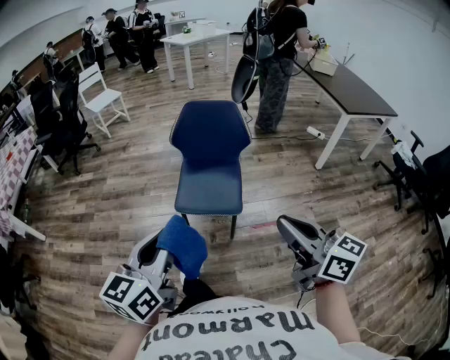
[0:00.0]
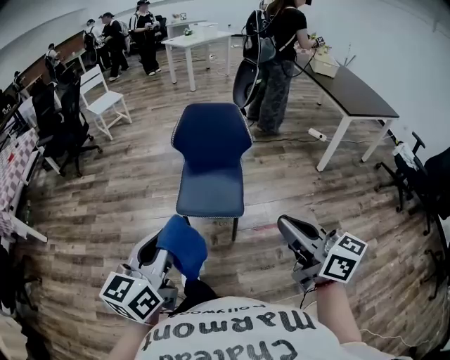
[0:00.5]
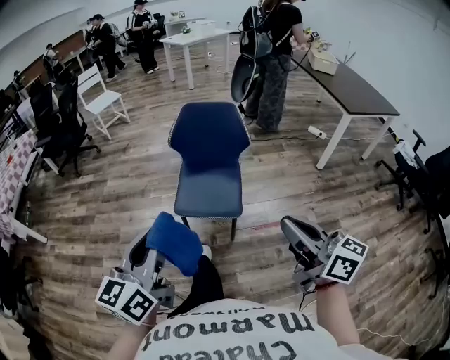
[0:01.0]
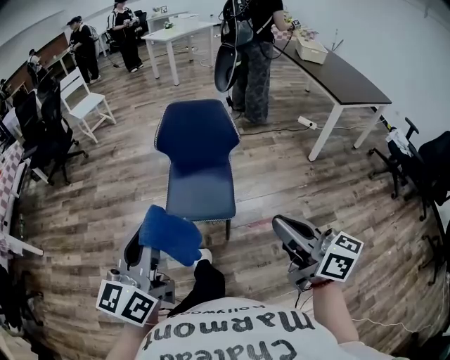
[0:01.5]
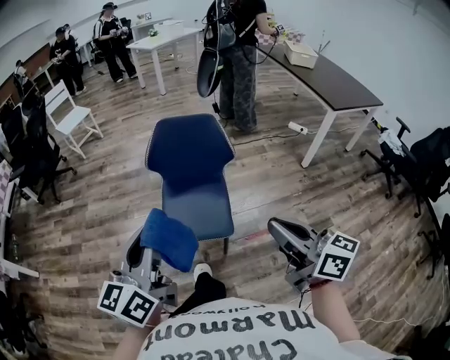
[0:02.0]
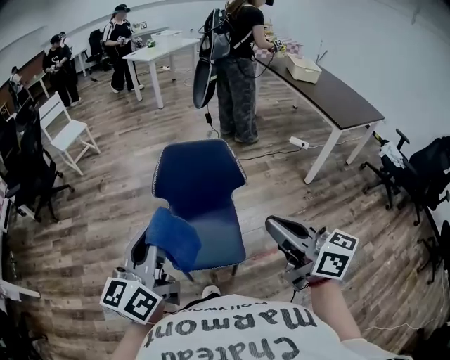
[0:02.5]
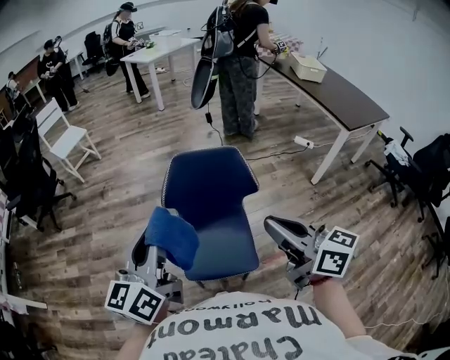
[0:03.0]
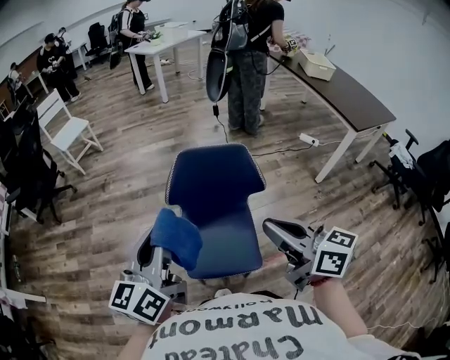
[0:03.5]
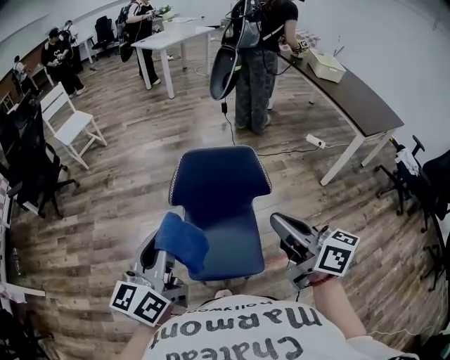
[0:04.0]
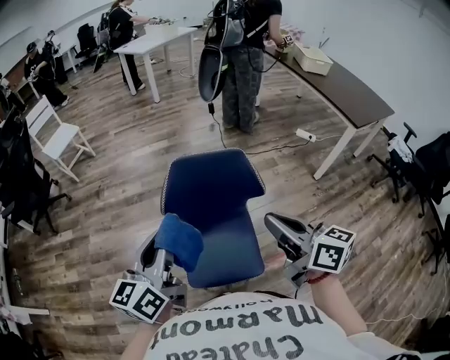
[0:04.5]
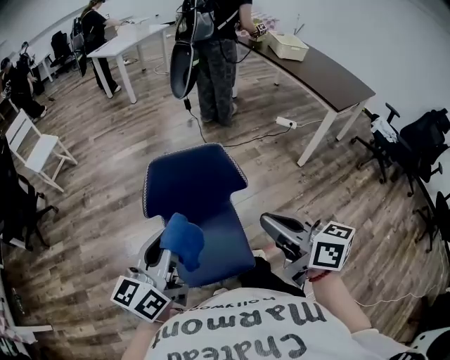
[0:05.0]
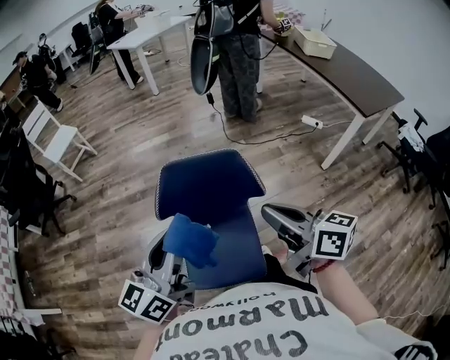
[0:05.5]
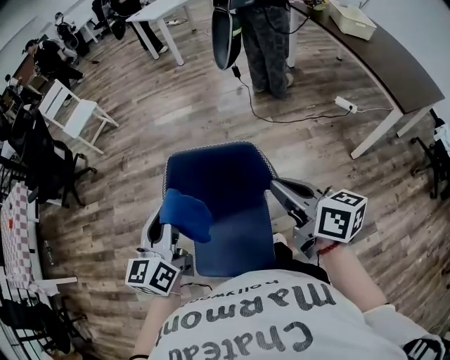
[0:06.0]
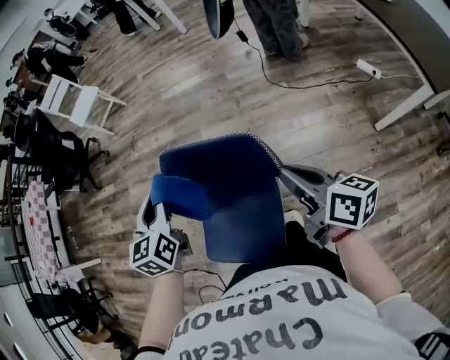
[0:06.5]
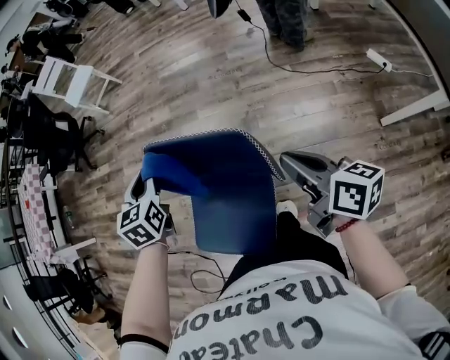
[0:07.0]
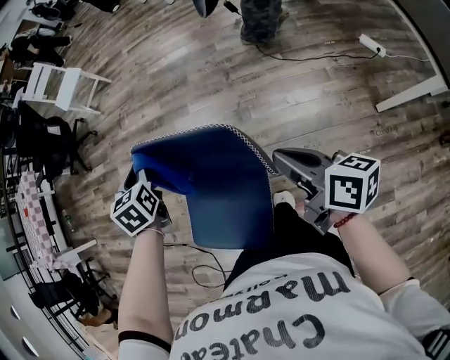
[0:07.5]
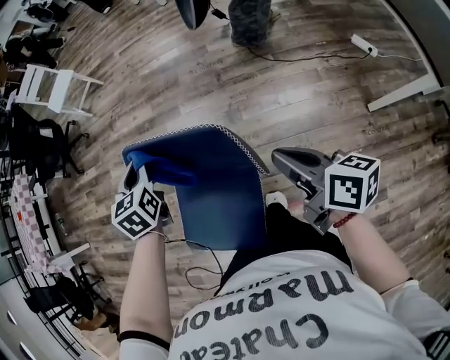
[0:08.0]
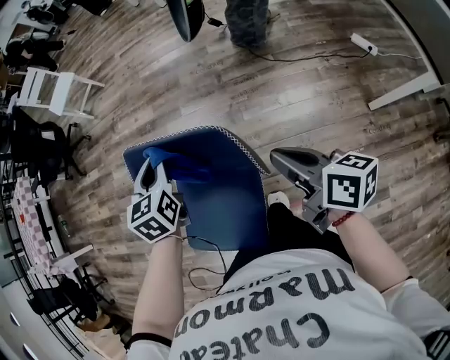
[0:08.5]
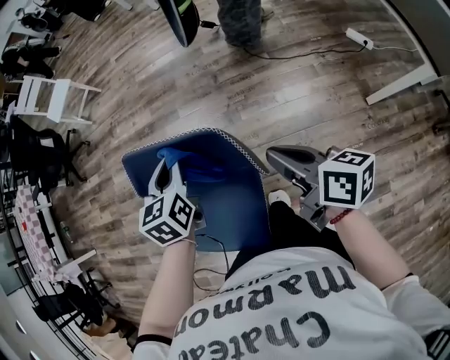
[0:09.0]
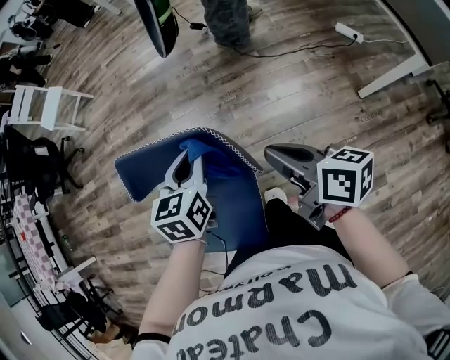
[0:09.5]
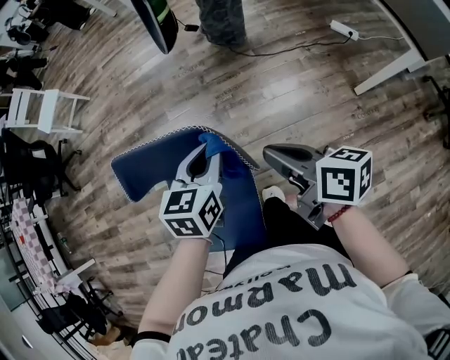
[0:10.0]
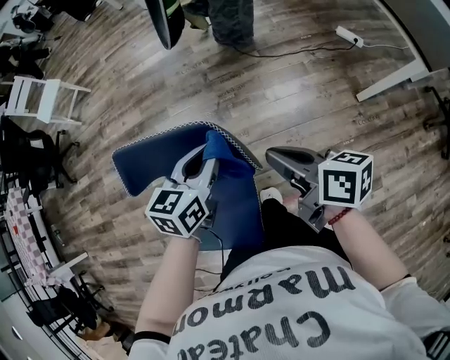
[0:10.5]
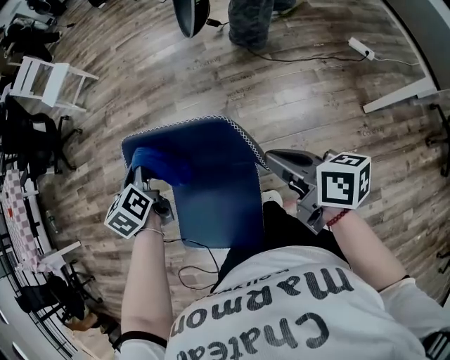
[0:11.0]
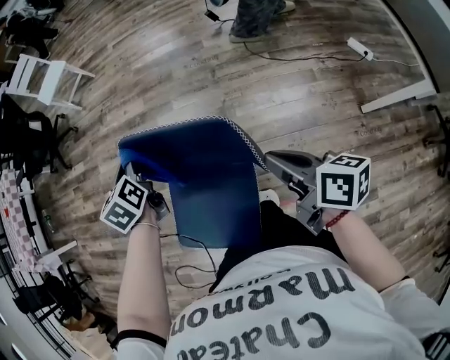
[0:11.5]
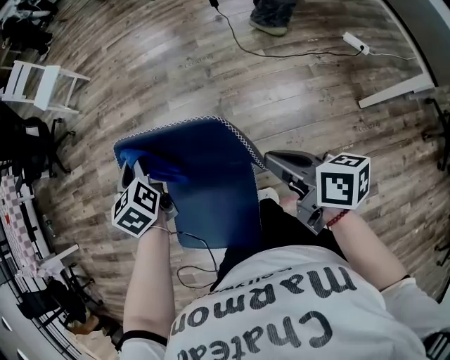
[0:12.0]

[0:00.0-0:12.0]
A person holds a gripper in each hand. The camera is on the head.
0:00.0 to 0:02.0: The two grippers go roughly 15 cm forward.
0:02.0 to 0:04.0: The two grippers go some 25 cm forward.
0:04.0 to 0:06.0: Both grippers move forward, to the right and downward, approximately 20 cm.
0:06.0 to 0:08.0: The right gripper travels downward and to the right by roughly 15 cm. The left gripper goes about 20 cm downward, forward and to the right, and swivels approximately 40 degrees.
0:08.0 to 0:10.0: The left gripper heads to the right and backward, covering about 25 cm, and changes its angle by some 40 degrees.
0:10.0 to 0:12.0: The left gripper ends up approximately 25 cm from where it was, and turns by roughly 40 degrees.

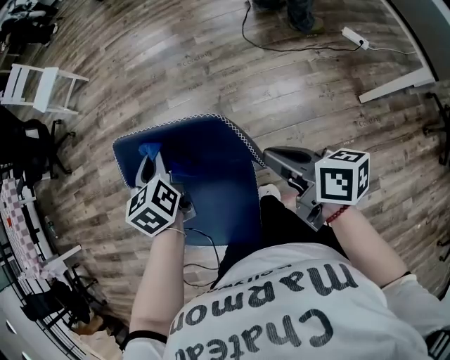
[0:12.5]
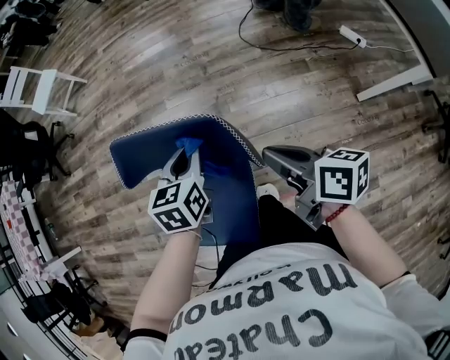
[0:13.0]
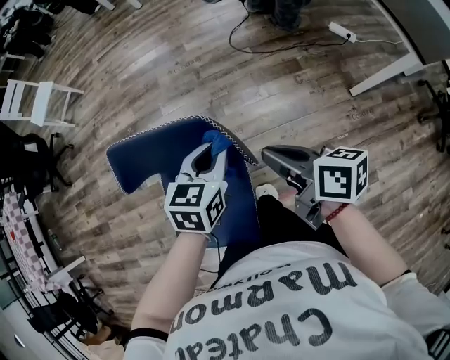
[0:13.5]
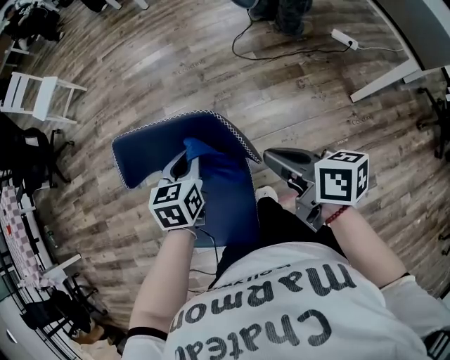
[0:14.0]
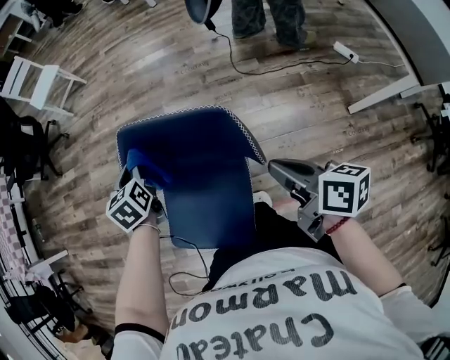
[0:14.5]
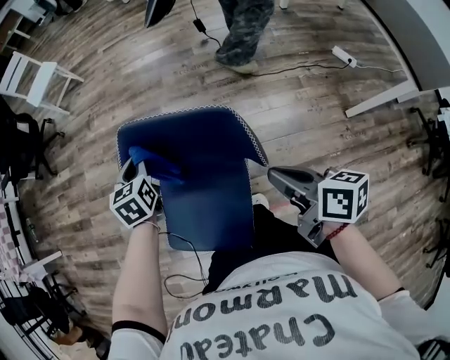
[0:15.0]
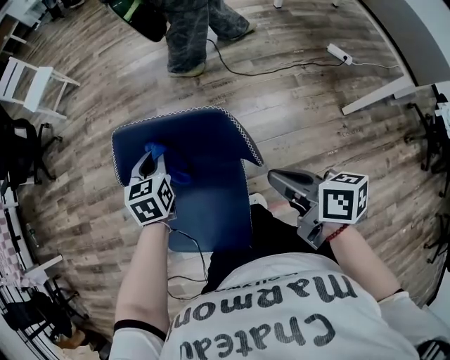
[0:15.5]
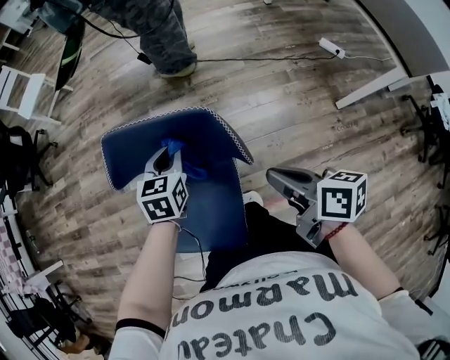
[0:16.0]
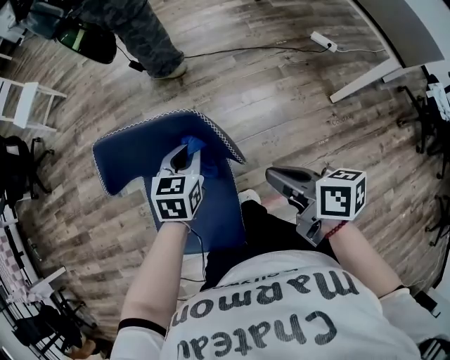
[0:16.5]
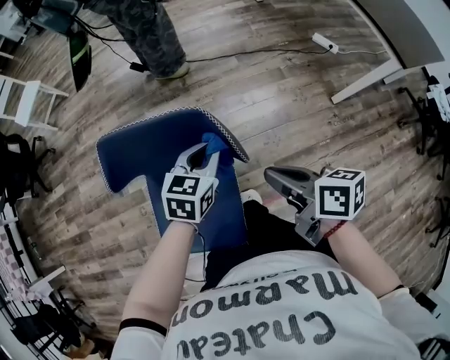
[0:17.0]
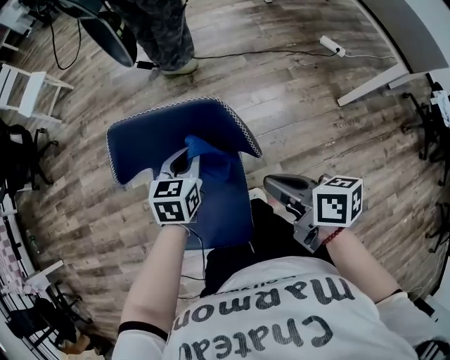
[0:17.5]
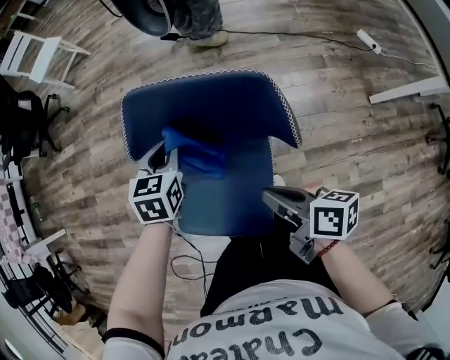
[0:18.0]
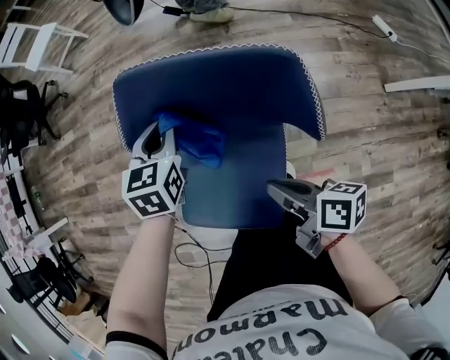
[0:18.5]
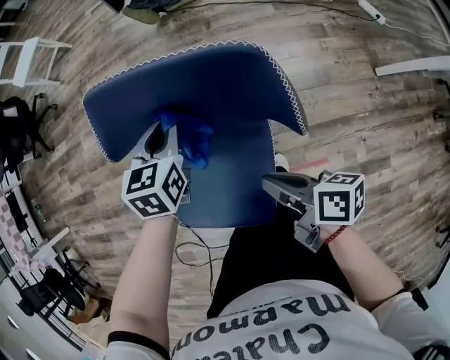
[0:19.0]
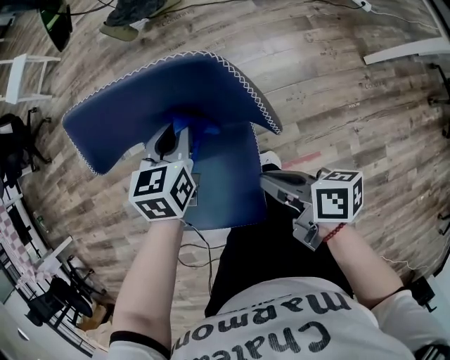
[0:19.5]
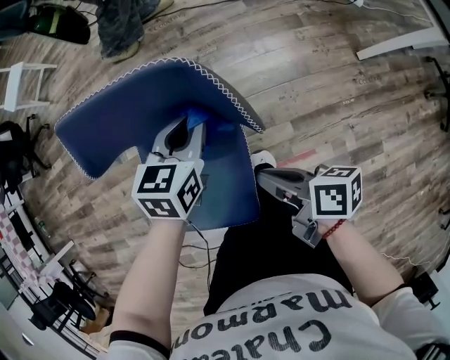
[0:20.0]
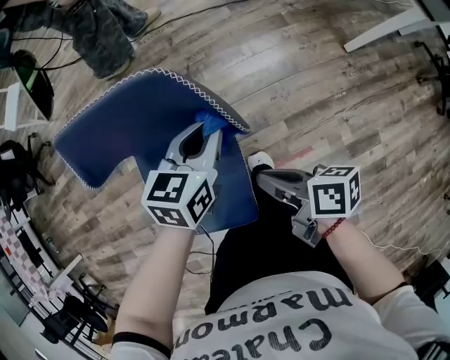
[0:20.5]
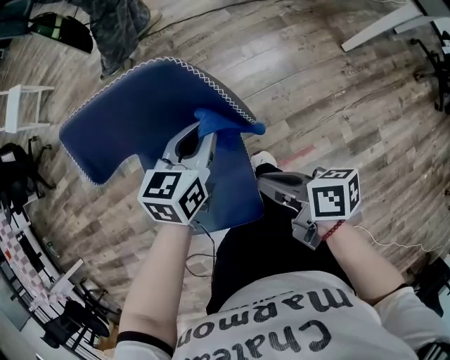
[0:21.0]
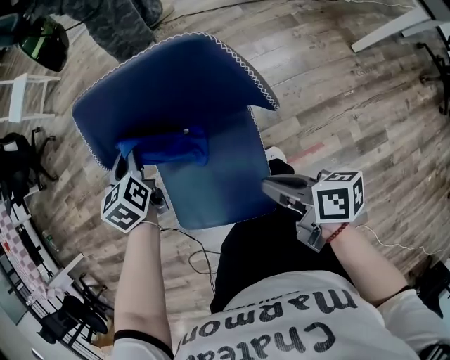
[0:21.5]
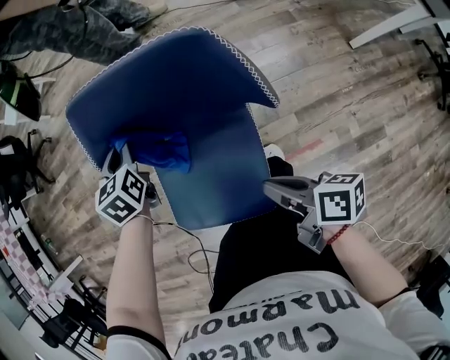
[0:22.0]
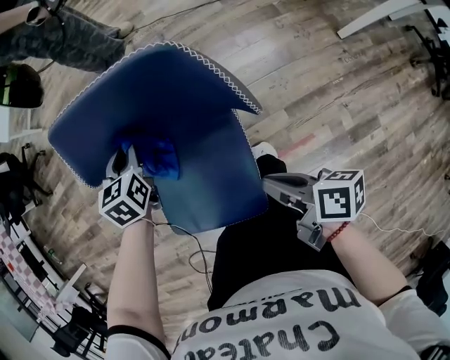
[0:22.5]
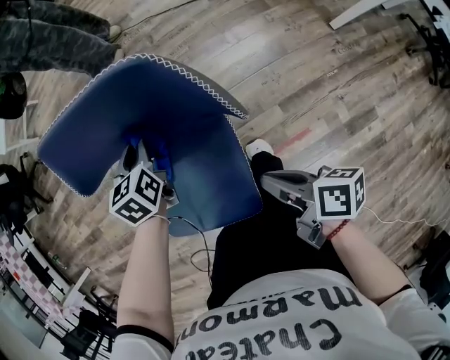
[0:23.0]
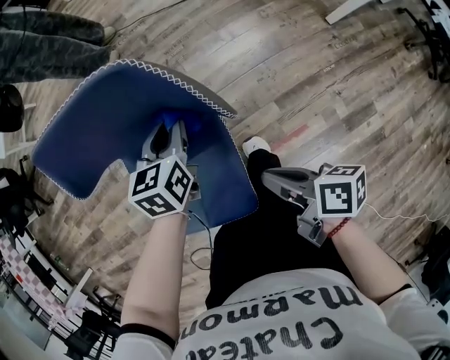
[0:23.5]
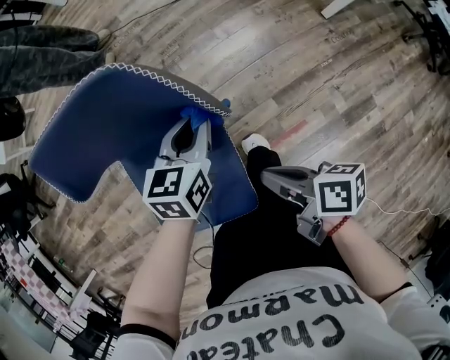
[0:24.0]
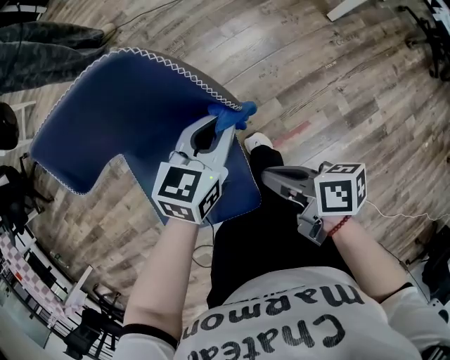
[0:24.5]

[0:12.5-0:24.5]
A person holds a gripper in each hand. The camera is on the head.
0:12.5 to 0:14.5: The left gripper moves to the left, some 10 cm. The right gripper shifts by some 5 cm.
0:14.5 to 0:16.5: The left gripper moves to the right, some 25 cm, and rotates roughly 40 degrees.
0:16.5 to 0:18.5: The right gripper ends up some 20 cm from where it was. The left gripper changes place by some 20 cm, and changes its angle by approximately 20 degrees.
0:18.5 to 0:20.5: The left gripper travels to the right and backward by roughly 30 cm, and swivels approximately 30 degrees. Meanwhile the right gripper heads to the right, covering some 10 cm.
0:20.5 to 0:22.5: The left gripper is displaced to the left and forward by approximately 25 cm, and turns by some 30 degrees.
0:22.5 to 0:24.5: The left gripper changes place by roughly 30 cm, and swivels about 50 degrees.

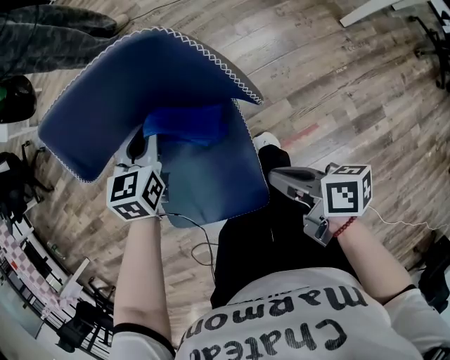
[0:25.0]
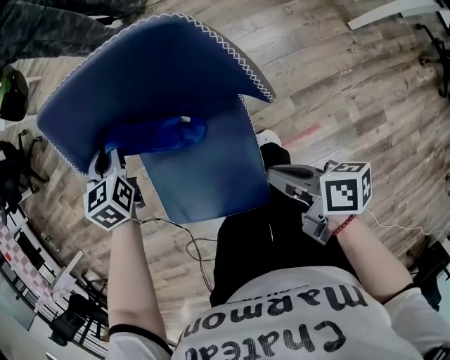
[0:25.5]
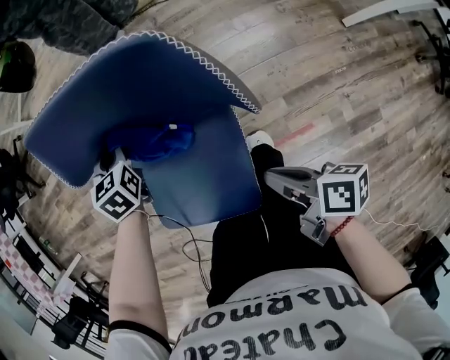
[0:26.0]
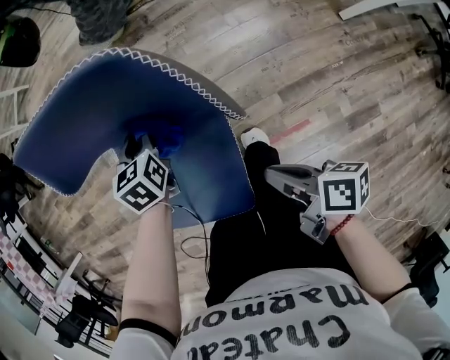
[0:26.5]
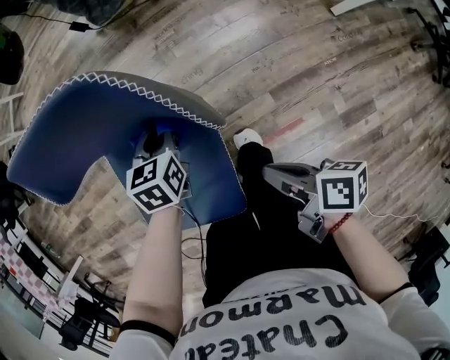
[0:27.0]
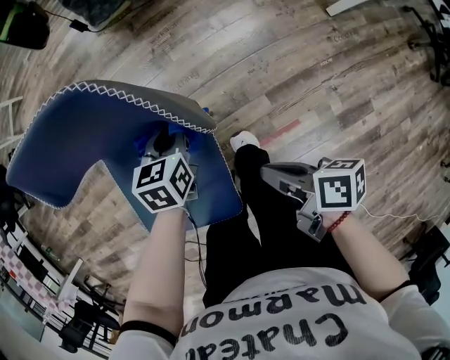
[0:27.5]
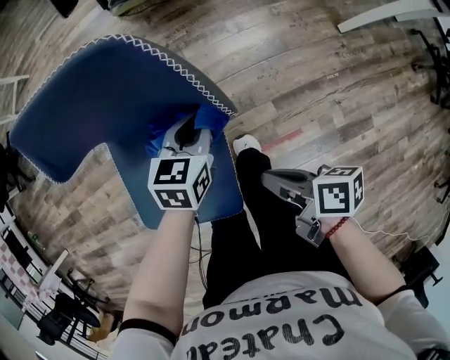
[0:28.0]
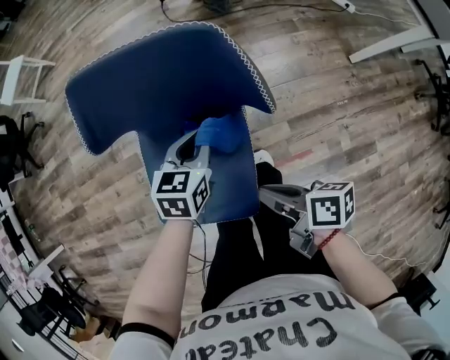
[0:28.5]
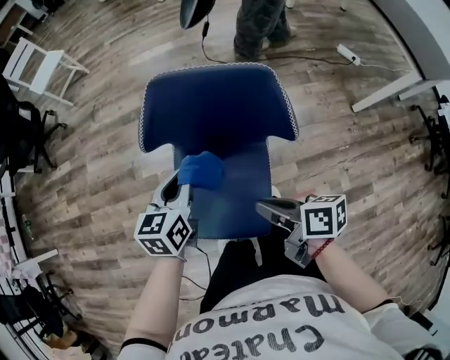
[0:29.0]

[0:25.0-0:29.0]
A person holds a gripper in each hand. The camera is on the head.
0:25.0 to 0:27.0: The right gripper is displaced to the right by some 5 cm. Meanwhile the left gripper heads to the right and downward, covering roughly 10 cm.
0:27.0 to 0:29.0: The two grippers go roughly 25 cm to the left and upward. The left gripper changes its angle by about 20 degrees.
